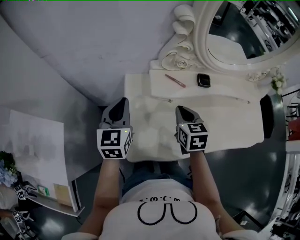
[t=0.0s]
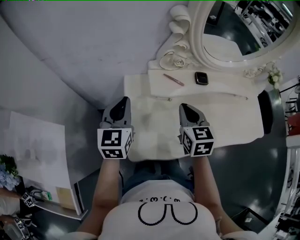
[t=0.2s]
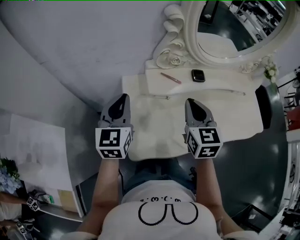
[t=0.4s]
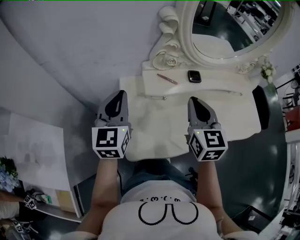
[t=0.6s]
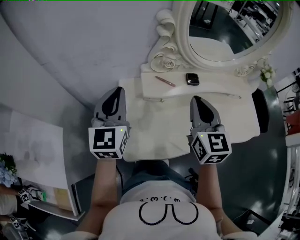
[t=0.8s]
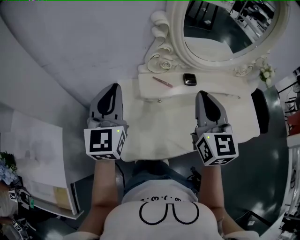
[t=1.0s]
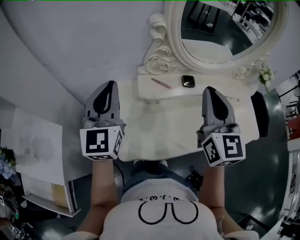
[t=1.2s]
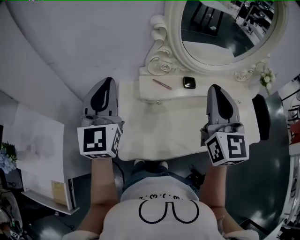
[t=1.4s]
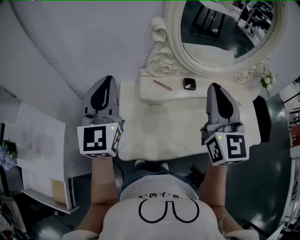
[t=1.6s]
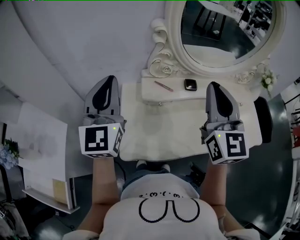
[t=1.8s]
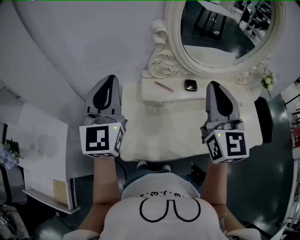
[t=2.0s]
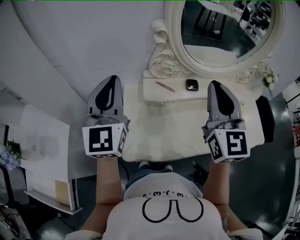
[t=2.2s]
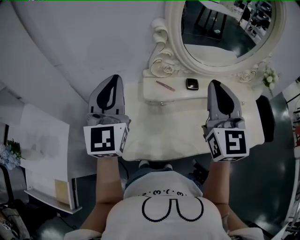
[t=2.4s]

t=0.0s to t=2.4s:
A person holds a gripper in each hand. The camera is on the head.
t=0.0s to t=1.2s: The right gripper heads upward, covering roughly 25 cm, and points its fingers about 40 degrees further upward; the left gripper goes some 15 cm upward, and swivels some 20 degrees.
t=1.2s to t=2.4s: The left gripper changes place by roughly 5 cm.

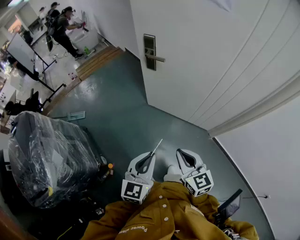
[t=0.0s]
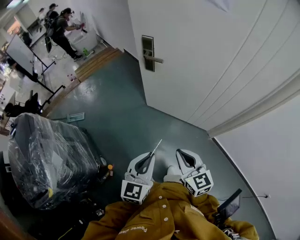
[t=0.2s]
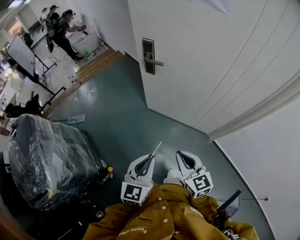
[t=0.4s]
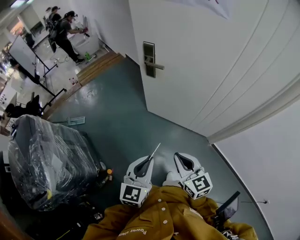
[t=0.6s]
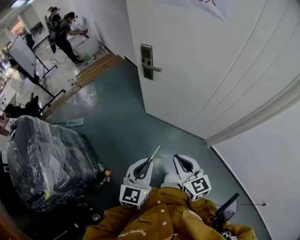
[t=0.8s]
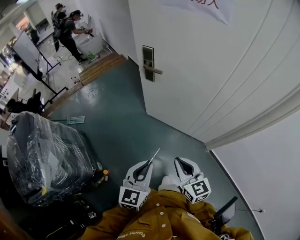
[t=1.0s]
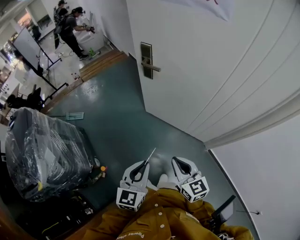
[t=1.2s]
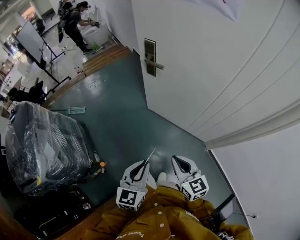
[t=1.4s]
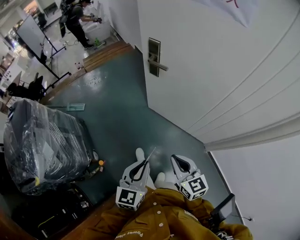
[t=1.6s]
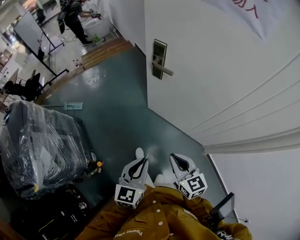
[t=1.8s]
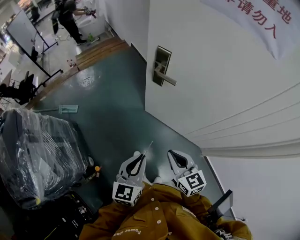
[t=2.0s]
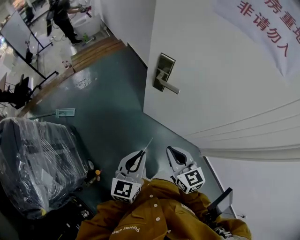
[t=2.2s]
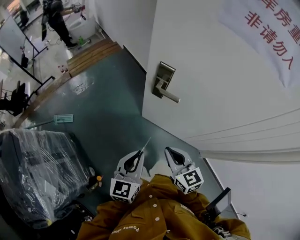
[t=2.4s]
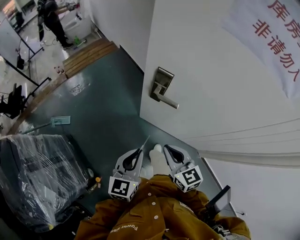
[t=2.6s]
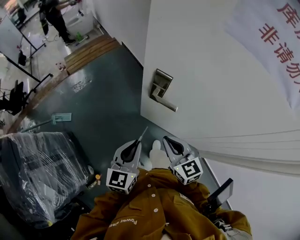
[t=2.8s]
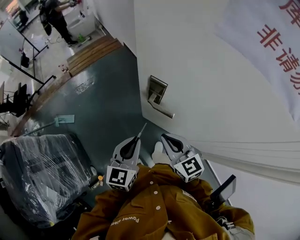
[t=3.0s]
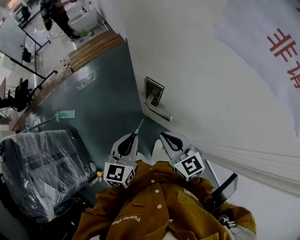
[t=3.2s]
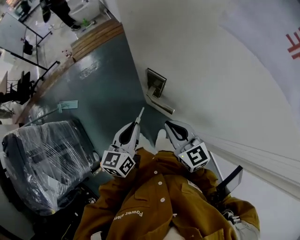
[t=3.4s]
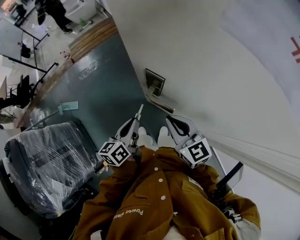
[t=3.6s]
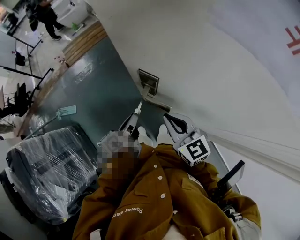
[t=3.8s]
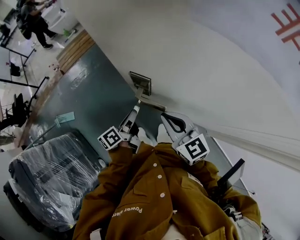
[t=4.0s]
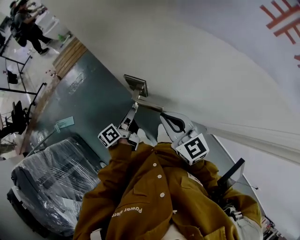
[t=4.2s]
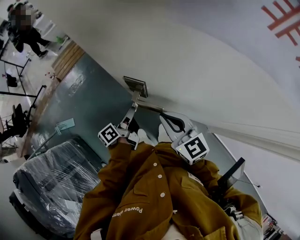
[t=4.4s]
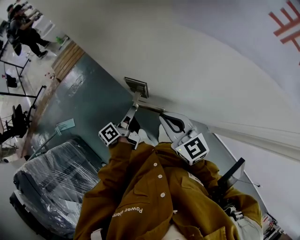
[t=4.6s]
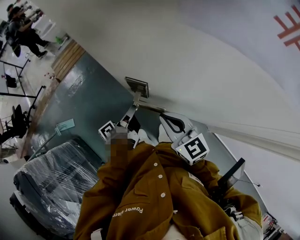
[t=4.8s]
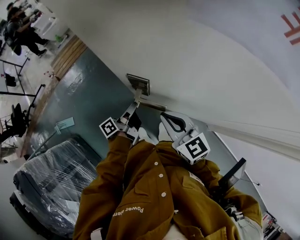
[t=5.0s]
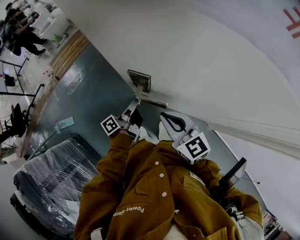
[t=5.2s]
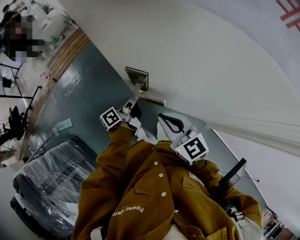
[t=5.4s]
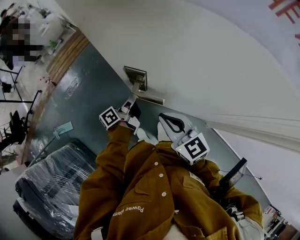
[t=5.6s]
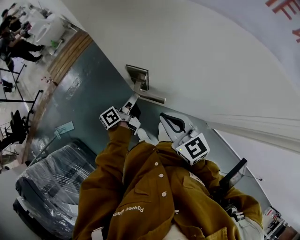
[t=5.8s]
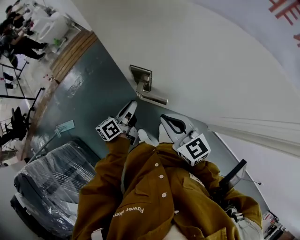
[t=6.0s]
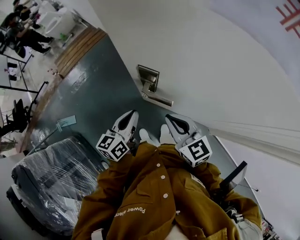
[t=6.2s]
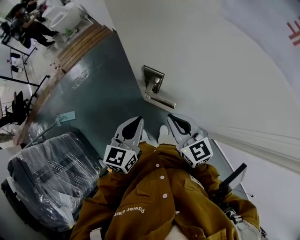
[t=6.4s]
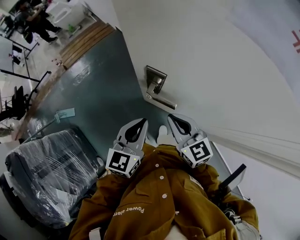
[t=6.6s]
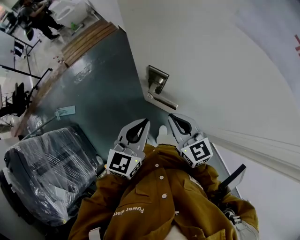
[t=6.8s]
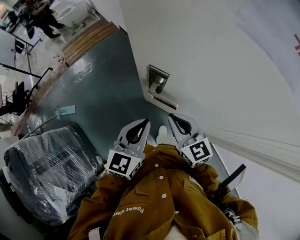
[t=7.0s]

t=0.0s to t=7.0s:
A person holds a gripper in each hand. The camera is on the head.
t=0.0s to t=1.4s: The grippers both shift to the right by some 5 cm.
t=1.4s to t=2.8s: The grippers both shift forward by approximately 35 cm.
t=2.8s to t=4.2s: The right gripper is displaced forward and to the right by about 10 cm. The left gripper heads forward and downward, covering some 20 cm, and twists roughly 70 degrees counterclockwise, seen from behind.
t=4.2s to t=5.6s: The left gripper heads forward, covering about 5 cm.
t=5.6s to t=7.0s: The left gripper moves upward and backward, some 20 cm, and twists approximately 70 degrees clockwise, seen from behind.

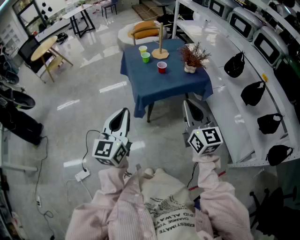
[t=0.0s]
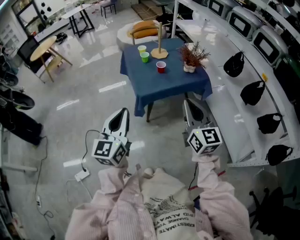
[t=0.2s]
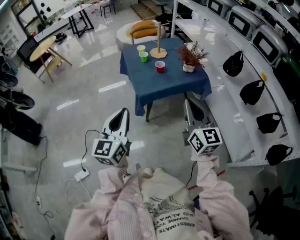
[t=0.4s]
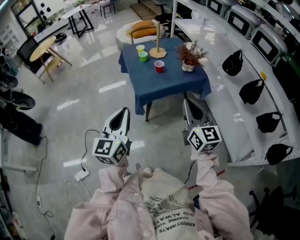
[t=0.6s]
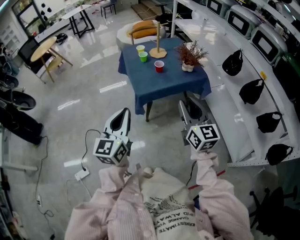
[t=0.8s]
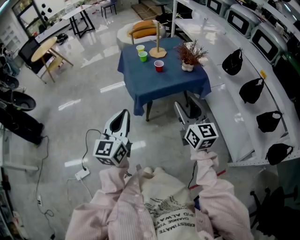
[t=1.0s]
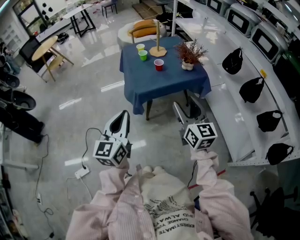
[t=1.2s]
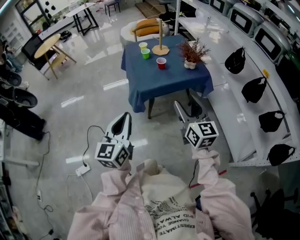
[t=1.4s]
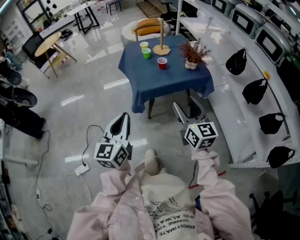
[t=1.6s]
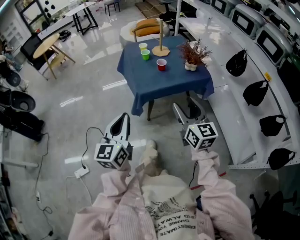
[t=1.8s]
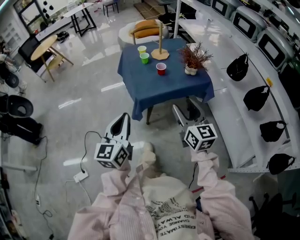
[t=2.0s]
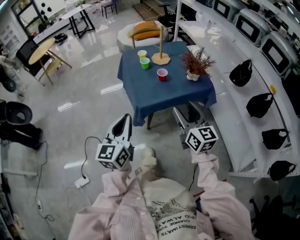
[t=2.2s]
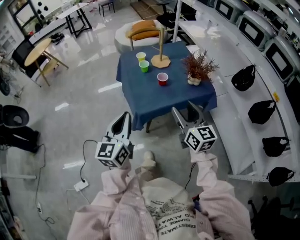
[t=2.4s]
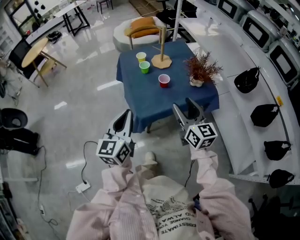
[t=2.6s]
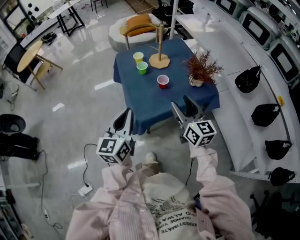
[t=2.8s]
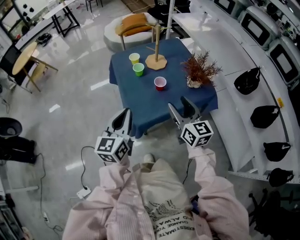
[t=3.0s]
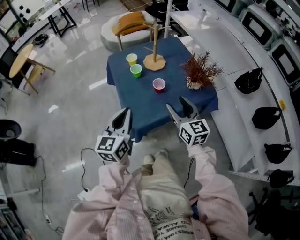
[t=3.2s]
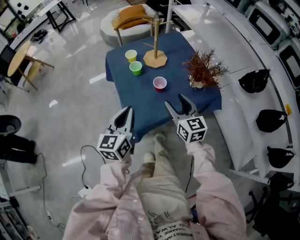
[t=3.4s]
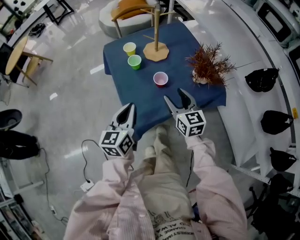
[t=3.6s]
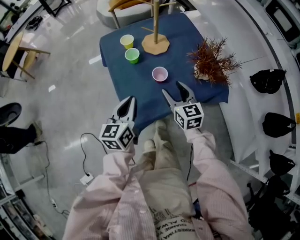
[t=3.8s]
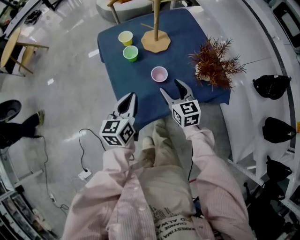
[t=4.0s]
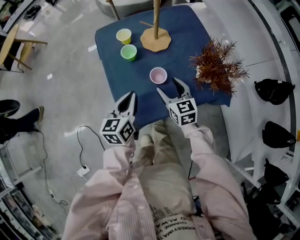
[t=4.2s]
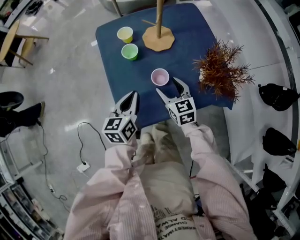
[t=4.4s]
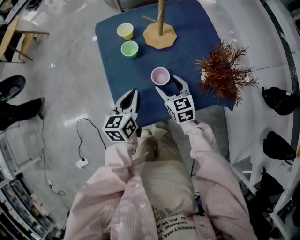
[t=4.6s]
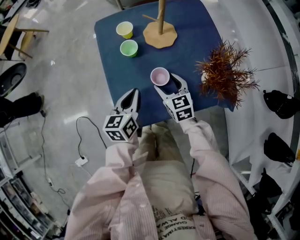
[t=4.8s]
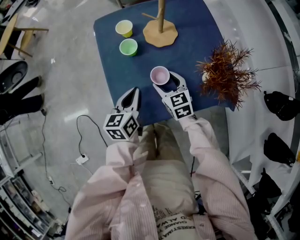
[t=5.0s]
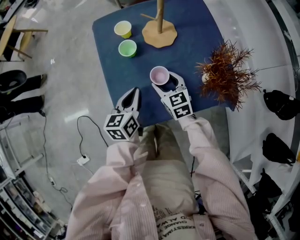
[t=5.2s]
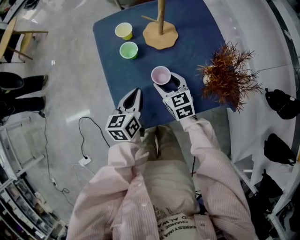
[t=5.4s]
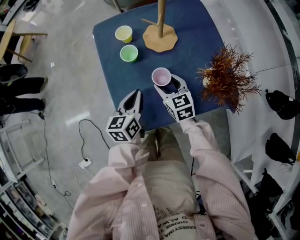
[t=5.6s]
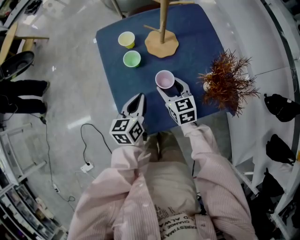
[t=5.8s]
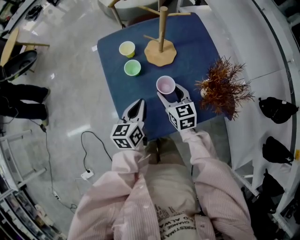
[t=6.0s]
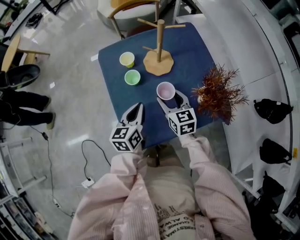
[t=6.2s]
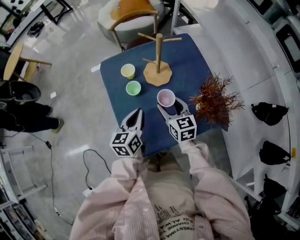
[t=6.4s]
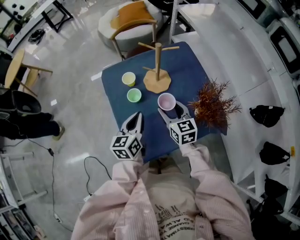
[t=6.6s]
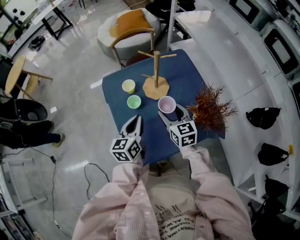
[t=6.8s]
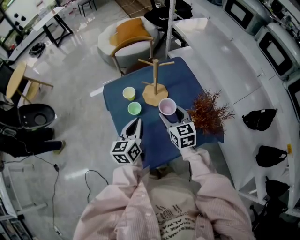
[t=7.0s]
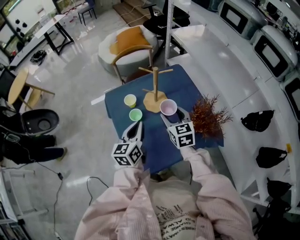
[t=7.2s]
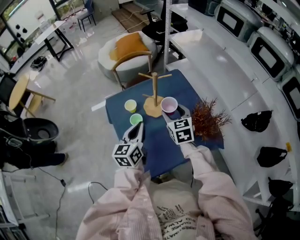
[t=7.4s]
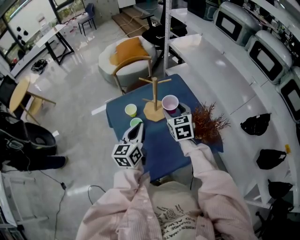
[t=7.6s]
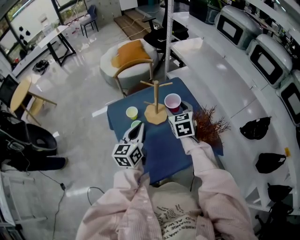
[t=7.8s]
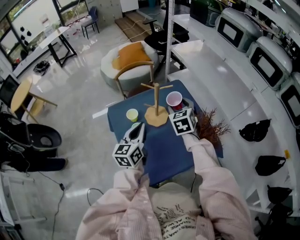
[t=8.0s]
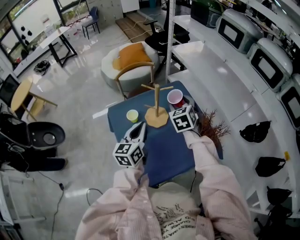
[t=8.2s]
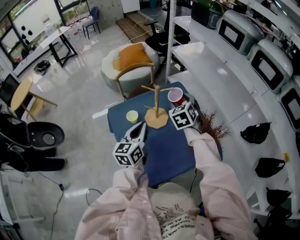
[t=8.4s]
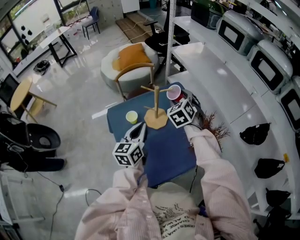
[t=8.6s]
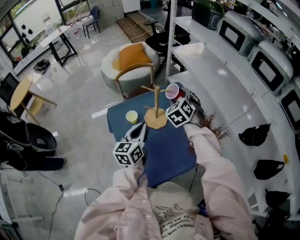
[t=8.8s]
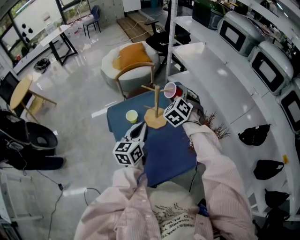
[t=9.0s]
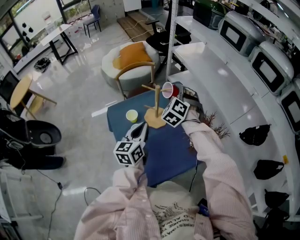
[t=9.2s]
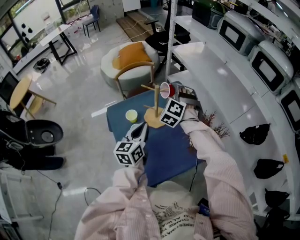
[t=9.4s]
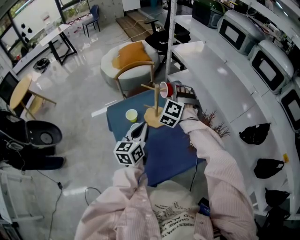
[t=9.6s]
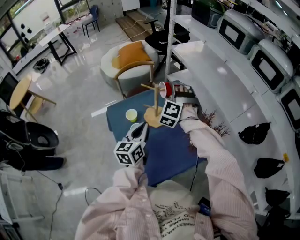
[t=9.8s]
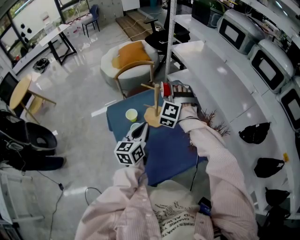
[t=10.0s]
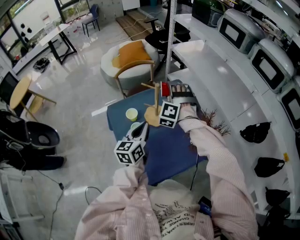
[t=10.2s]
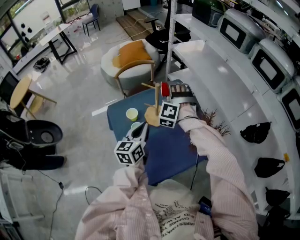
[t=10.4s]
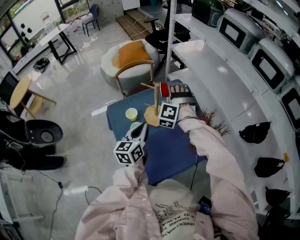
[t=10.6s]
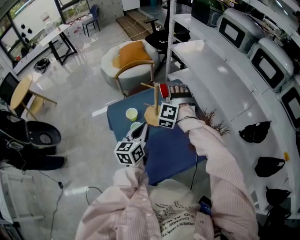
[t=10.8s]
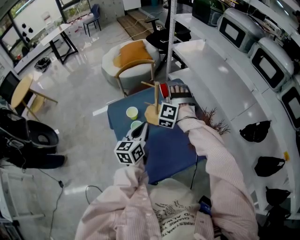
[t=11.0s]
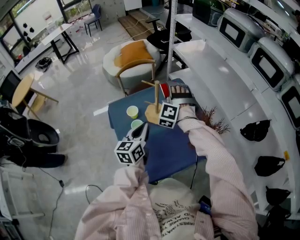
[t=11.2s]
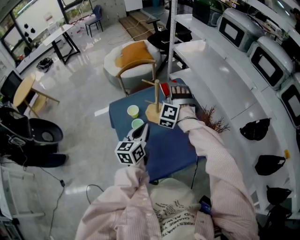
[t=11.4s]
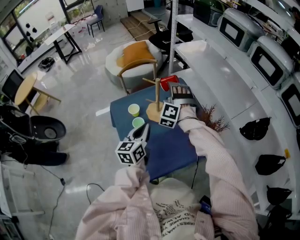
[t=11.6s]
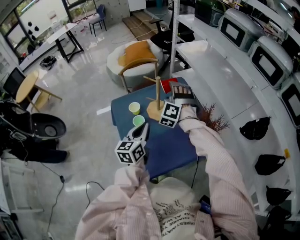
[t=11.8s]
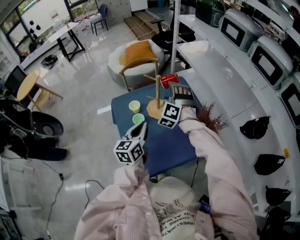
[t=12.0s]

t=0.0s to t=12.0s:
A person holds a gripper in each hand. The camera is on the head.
t=0.0s to t=1.6s: The right gripper changes place by roughly 5 cm, and opens. Meanwhile the left gripper moves approximately 5 cm.
t=1.6s to t=3.0s: The two grippers go some 30 cm forward.
t=3.0s to t=4.4s: Both grippers move downward and forward, about 25 cm. The right gripper swivels about 30 degrees. The left gripper turns by some 20 degrees.
t=4.4s to t=6.0s: The right gripper travels forward by about 5 cm.
t=6.0s to t=7.6s: The grippers both shift upward and forward by roughly 20 cm. The left gripper changes its angle by roughly 20 degrees.
t=7.6s to t=9.0s: The right gripper moves forward, about 10 cm, and swivels about 40 degrees.
t=9.0s to t=10.4s: The right gripper changes its angle by some 40 degrees.
t=10.4s to t=12.0s: The grippers both shift backward by roughly 5 cm.

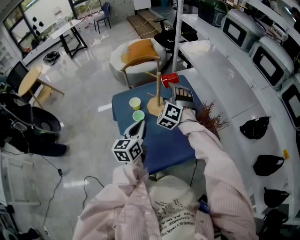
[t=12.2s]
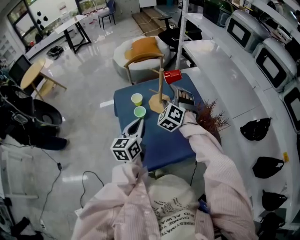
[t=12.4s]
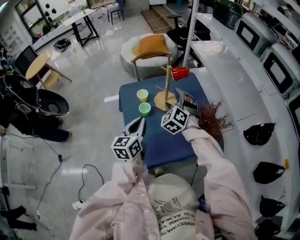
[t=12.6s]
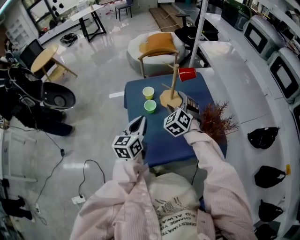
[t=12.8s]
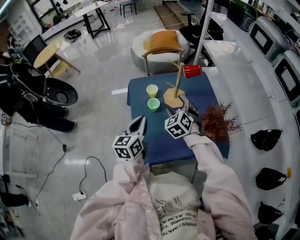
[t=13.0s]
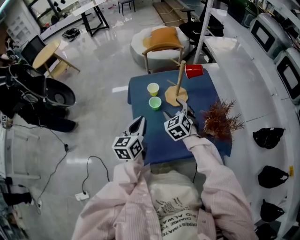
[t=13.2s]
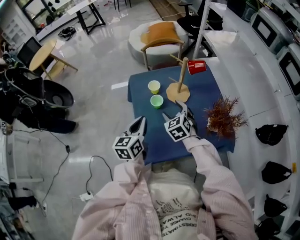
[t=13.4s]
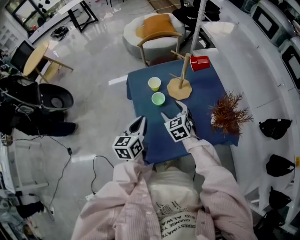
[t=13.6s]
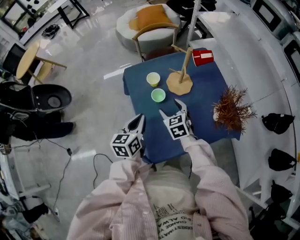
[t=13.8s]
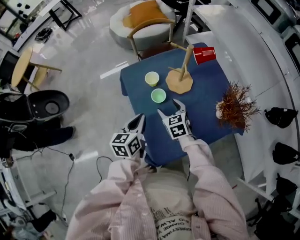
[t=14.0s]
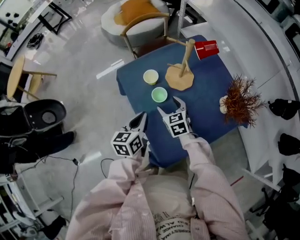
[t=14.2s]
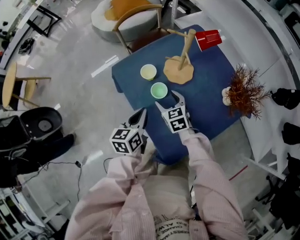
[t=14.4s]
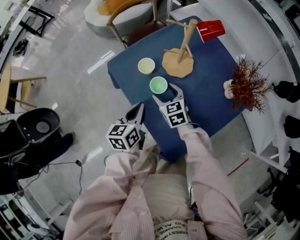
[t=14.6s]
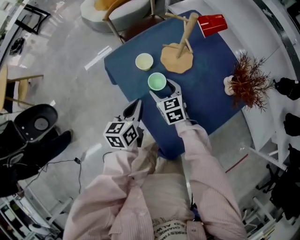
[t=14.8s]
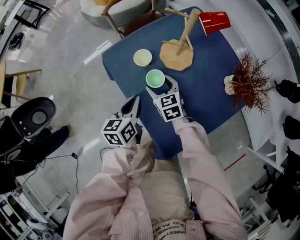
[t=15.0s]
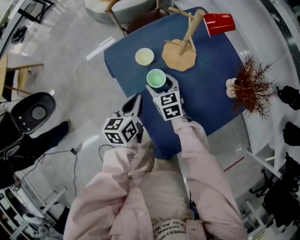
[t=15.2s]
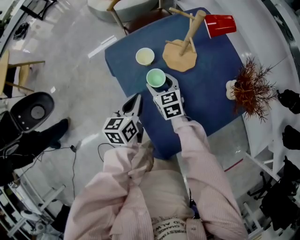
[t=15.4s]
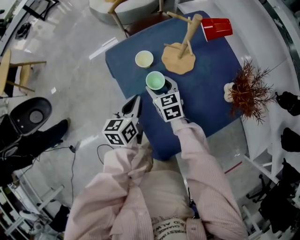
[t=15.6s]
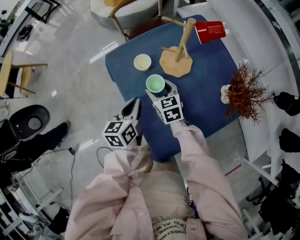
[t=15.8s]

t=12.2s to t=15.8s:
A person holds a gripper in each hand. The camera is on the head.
t=12.2s to t=14.0s: The right gripper moves downward, to the left and backward, approximately 25 cm, and rolls clockwise, seen from behind, by roughly 60 degrees. The left gripper shifts about 15 cm to the left and downward.
t=14.0s to t=15.8s: The right gripper ends up roughly 5 cm from where it was, while the left gripper is displaced downward and forward by some 5 cm.
